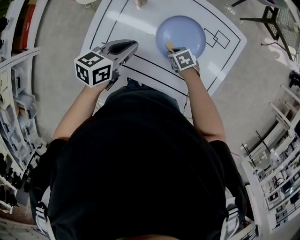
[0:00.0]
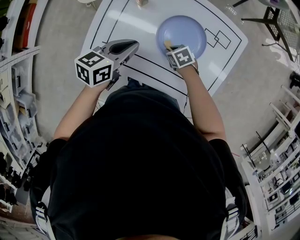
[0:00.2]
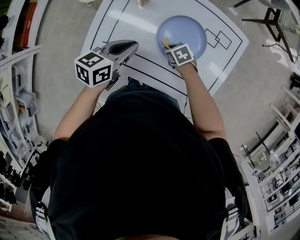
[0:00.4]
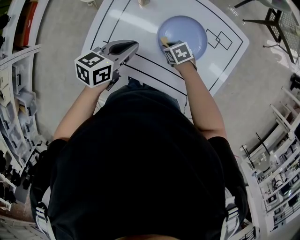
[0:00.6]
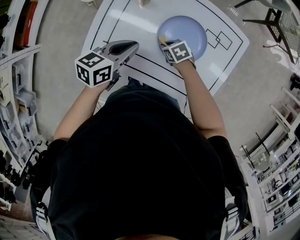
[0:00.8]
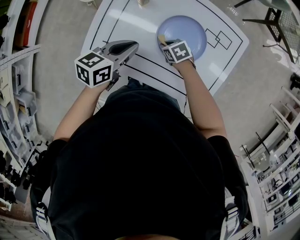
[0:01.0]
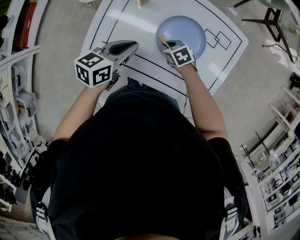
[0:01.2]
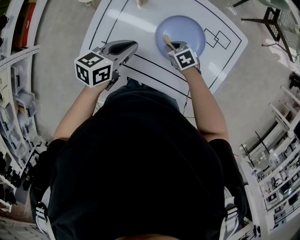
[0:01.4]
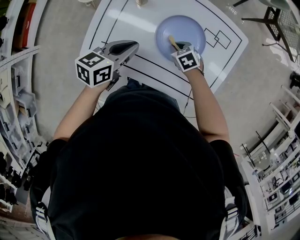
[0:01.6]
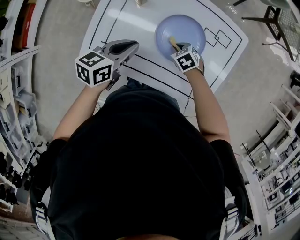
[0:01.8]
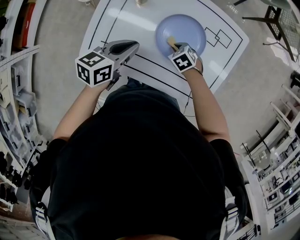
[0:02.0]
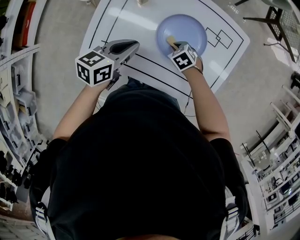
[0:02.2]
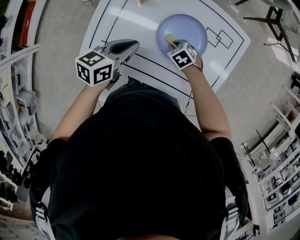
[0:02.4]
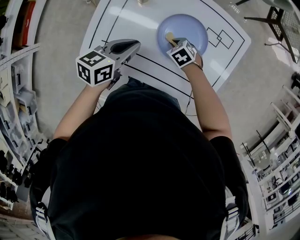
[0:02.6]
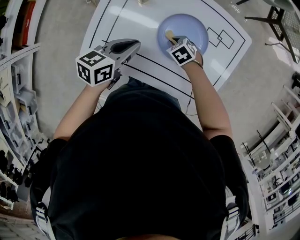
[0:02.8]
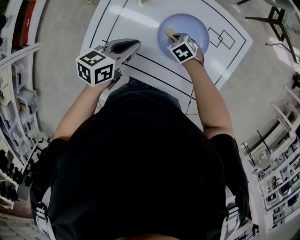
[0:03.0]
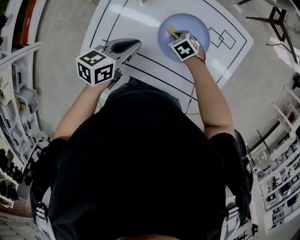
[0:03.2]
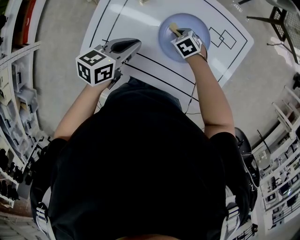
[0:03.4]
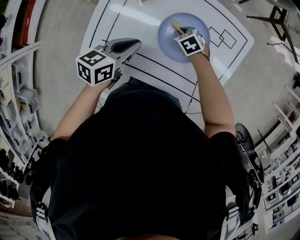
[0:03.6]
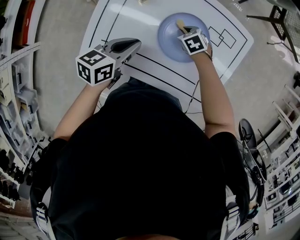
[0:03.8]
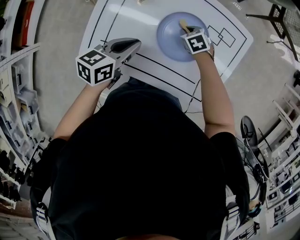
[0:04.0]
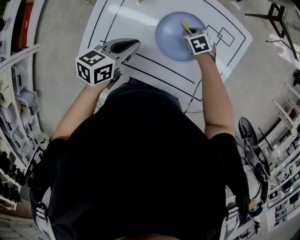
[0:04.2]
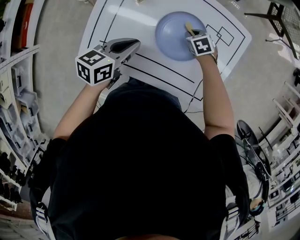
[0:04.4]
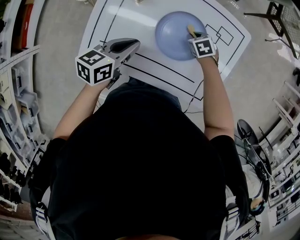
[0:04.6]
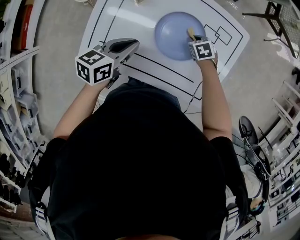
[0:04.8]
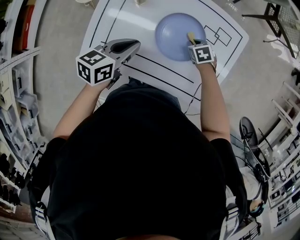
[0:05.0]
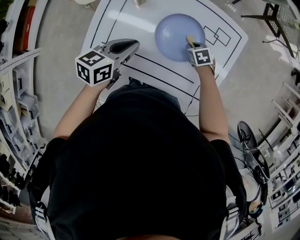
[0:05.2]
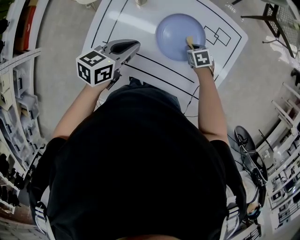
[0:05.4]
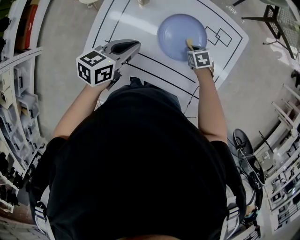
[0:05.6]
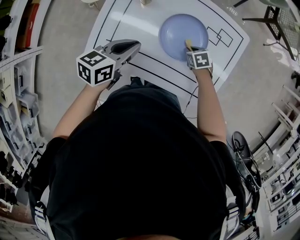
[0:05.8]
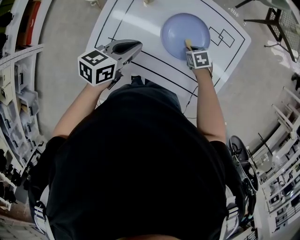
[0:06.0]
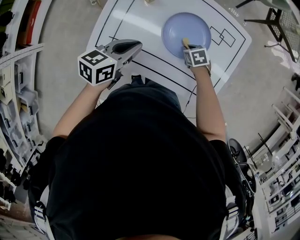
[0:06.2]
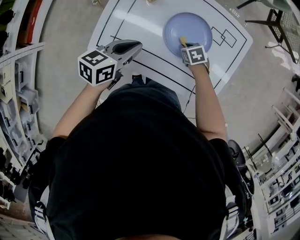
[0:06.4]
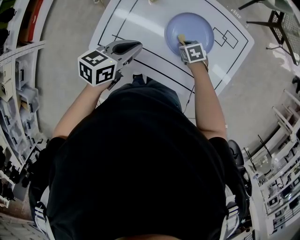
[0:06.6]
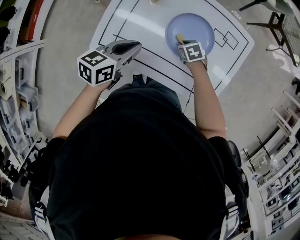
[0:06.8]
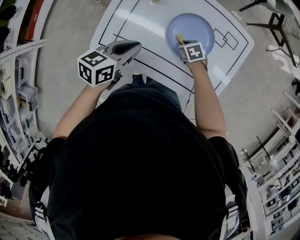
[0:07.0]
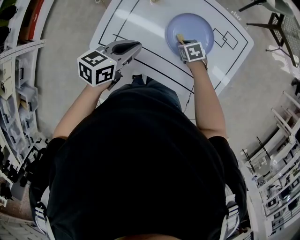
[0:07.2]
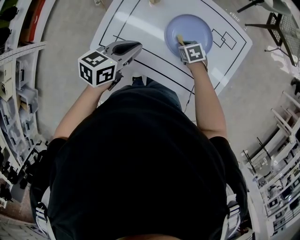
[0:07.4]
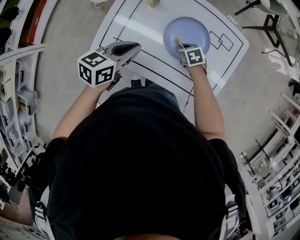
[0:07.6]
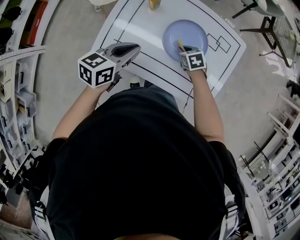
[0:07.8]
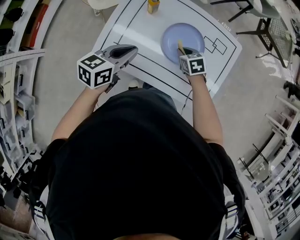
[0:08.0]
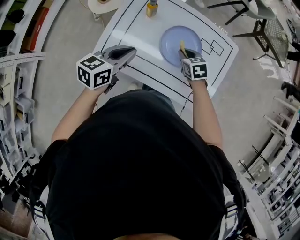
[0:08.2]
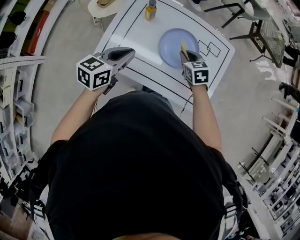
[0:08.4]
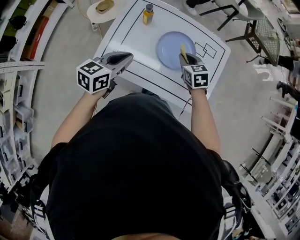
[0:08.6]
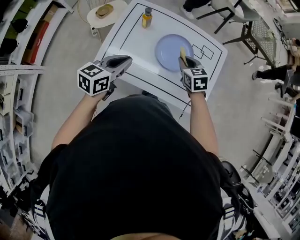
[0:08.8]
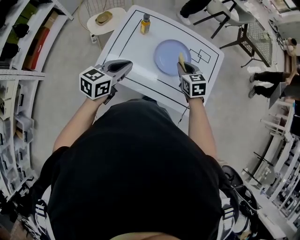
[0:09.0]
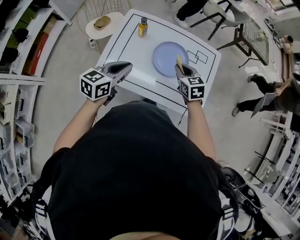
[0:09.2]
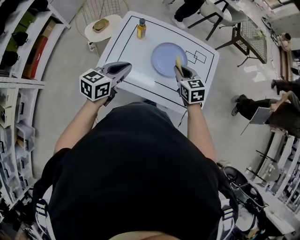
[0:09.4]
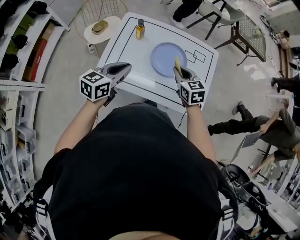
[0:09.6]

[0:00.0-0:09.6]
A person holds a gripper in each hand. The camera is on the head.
0:00.0 to 0:01.6: The grippers stay close to where they were, moving slightly.
0:01.6 to 0:03.2: There are only small adjustments of the grippers.
0:03.2 to 0:04.8: The right gripper moves about 10 cm.
0:04.8 to 0:06.4: The right gripper moves approximately 10 cm.
0:06.4 to 0:08.0: The right gripper shifts approximately 10 cm upward; the left gripper changes place by roughly 5 cm.
0:08.0 to 0:09.6: The left gripper travels upward by roughly 5 cm. Meanwhile the right gripper goes roughly 20 cm upward and backward, and rotates roughly 30 degrees.

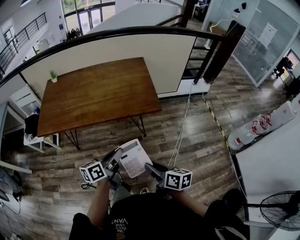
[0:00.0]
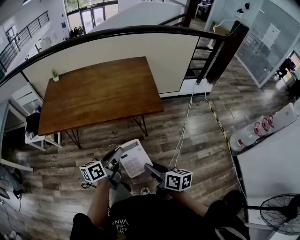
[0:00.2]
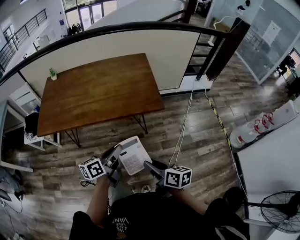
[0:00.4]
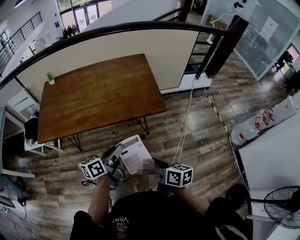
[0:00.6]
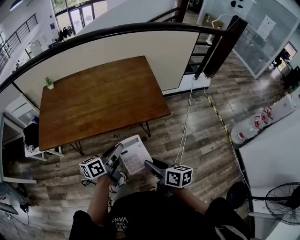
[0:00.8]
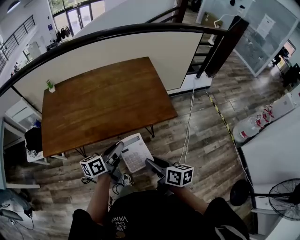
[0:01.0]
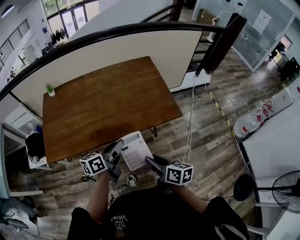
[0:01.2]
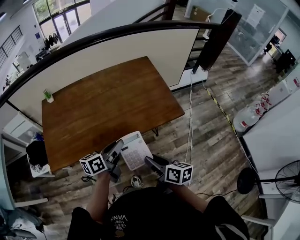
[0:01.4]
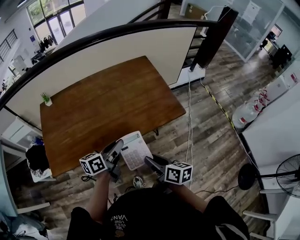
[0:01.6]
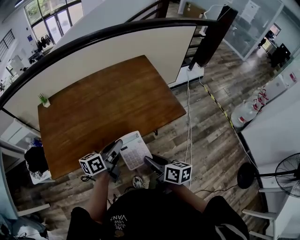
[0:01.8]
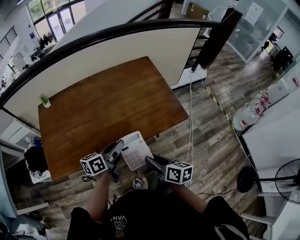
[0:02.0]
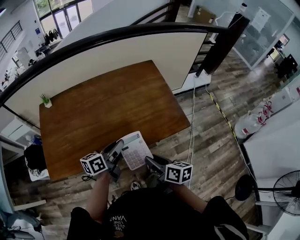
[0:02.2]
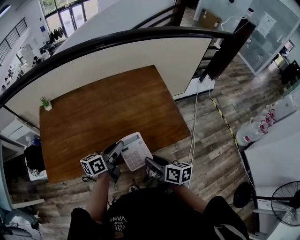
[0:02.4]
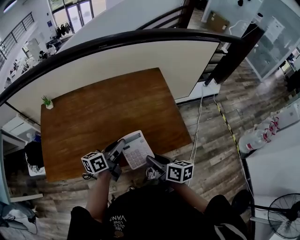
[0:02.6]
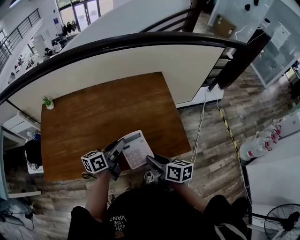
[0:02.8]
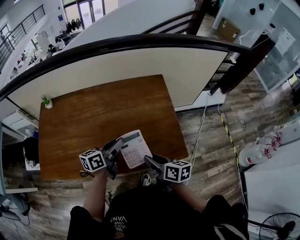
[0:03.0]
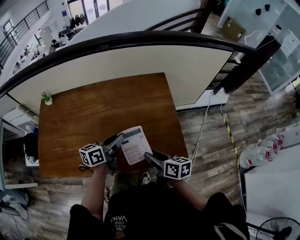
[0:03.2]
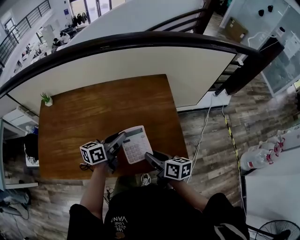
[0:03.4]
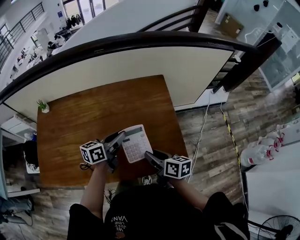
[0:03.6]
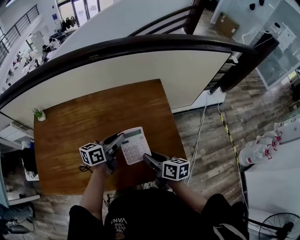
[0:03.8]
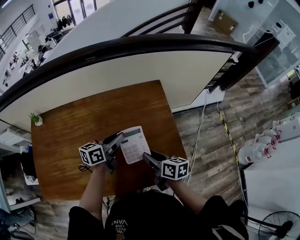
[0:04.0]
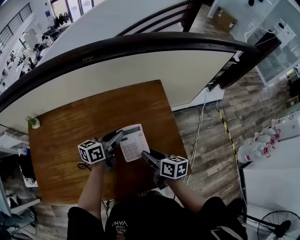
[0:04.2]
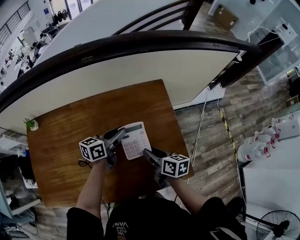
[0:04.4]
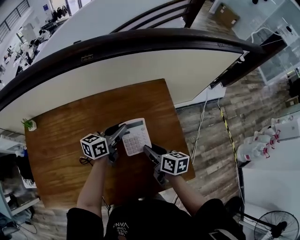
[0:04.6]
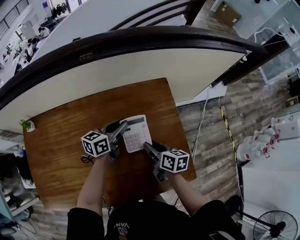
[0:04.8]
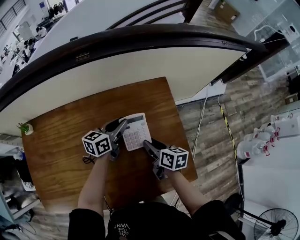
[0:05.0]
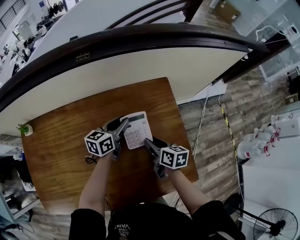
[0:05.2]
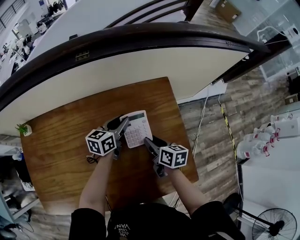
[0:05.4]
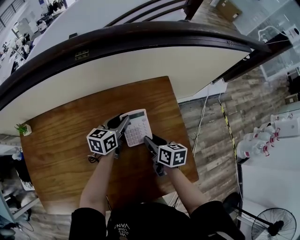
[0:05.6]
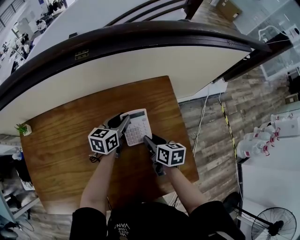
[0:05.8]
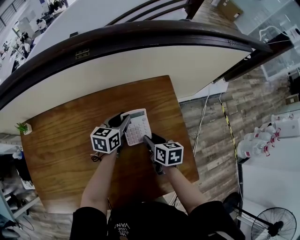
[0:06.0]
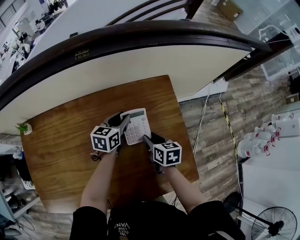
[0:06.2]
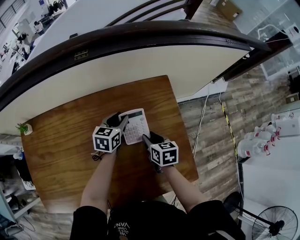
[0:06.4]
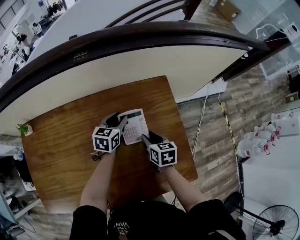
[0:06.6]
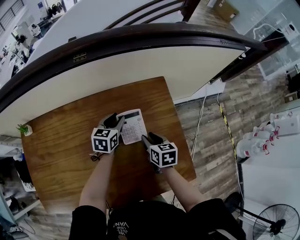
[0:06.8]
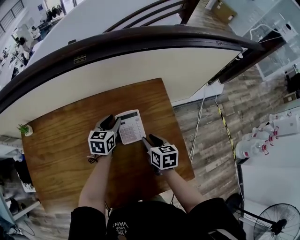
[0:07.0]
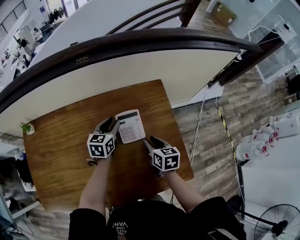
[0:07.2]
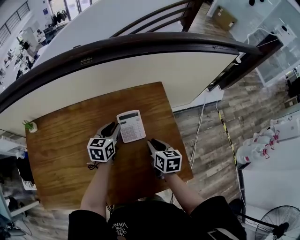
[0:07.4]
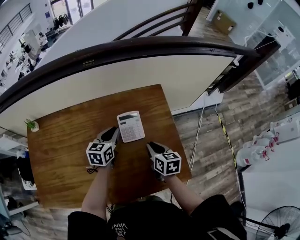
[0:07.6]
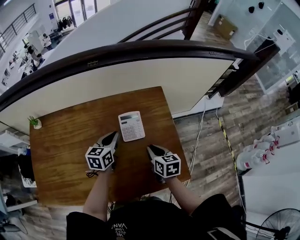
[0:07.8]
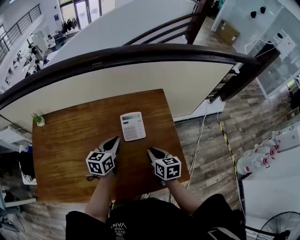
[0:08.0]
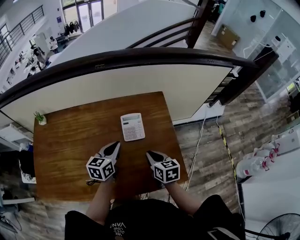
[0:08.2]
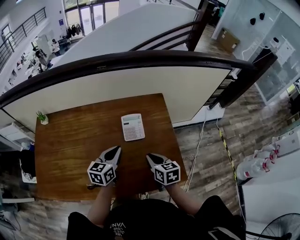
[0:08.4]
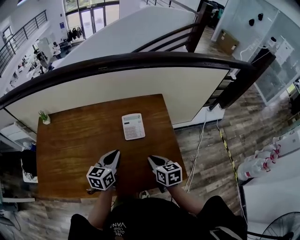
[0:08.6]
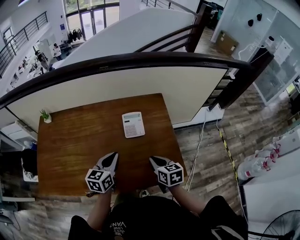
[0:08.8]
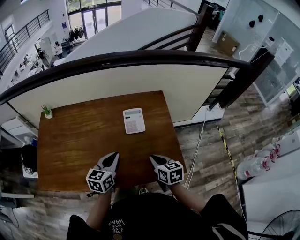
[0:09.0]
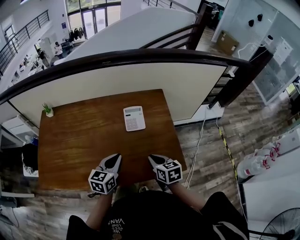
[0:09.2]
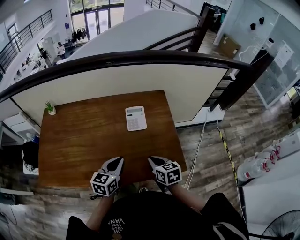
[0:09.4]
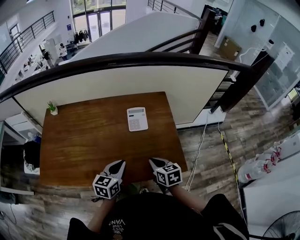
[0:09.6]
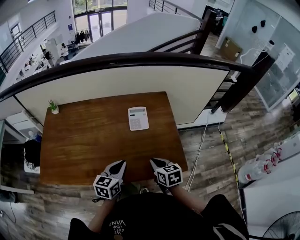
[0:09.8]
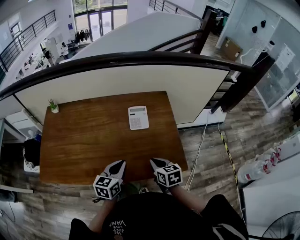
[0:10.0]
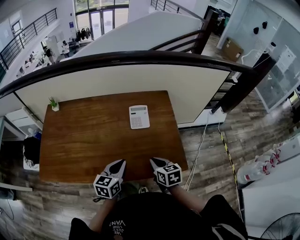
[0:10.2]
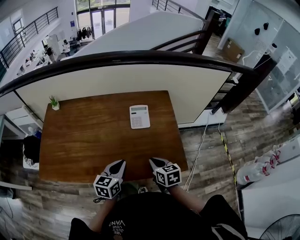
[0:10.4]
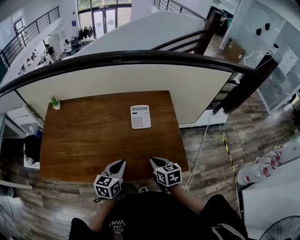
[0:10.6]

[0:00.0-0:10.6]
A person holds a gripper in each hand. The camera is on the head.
0:00.0 to 0:01.6: The right gripper goes roughly 25 cm to the left and forward. The left gripper is displaced forward and to the left by some 25 cm.
0:01.6 to 0:03.0: The grippers both shift forward by about 20 cm.
0:03.0 to 0:04.6: The two grippers go about 20 cm forward.
0:04.6 to 0:06.0: The right gripper heads forward, covering approximately 5 cm. The left gripper is displaced forward and downward by about 10 cm.
0:06.0 to 0:07.6: The right gripper heads backward and upward, covering about 10 cm. The left gripper goes approximately 10 cm backward.
0:07.6 to 0:09.0: The left gripper goes about 20 cm backward. Meanwhile the right gripper shifts about 15 cm backward.
0:09.0 to 0:10.6: The left gripper moves backward, some 5 cm.

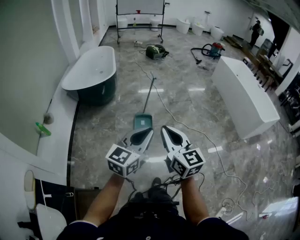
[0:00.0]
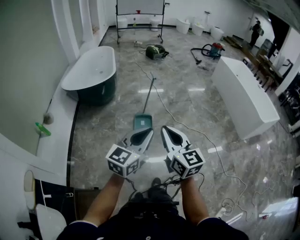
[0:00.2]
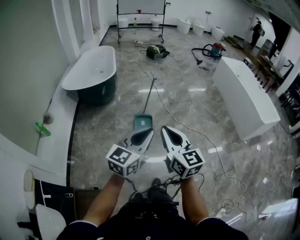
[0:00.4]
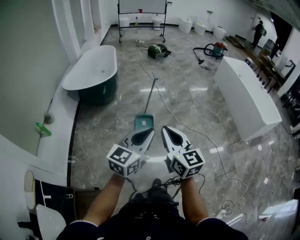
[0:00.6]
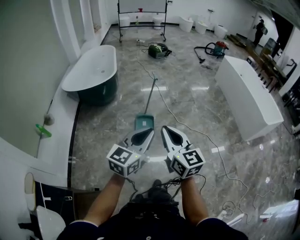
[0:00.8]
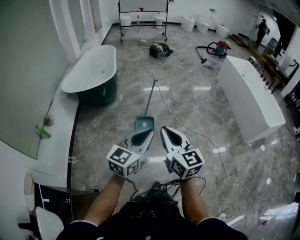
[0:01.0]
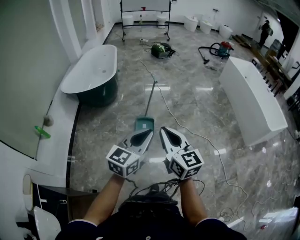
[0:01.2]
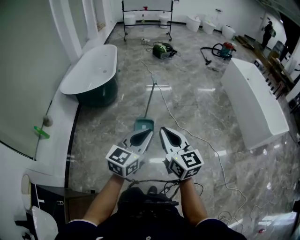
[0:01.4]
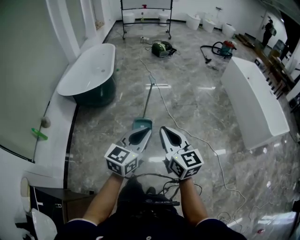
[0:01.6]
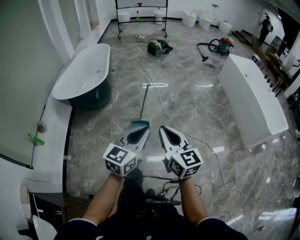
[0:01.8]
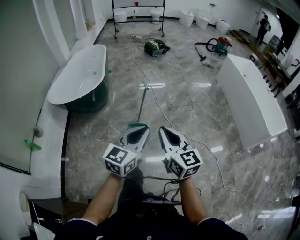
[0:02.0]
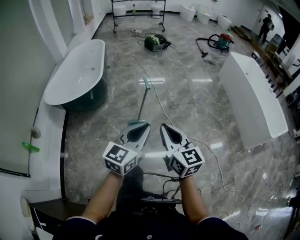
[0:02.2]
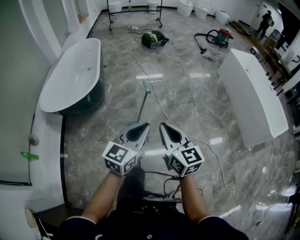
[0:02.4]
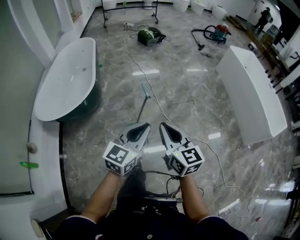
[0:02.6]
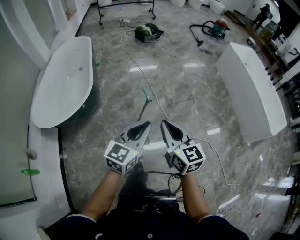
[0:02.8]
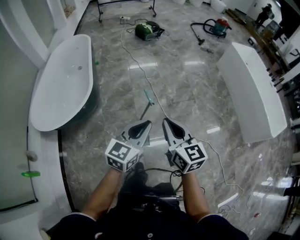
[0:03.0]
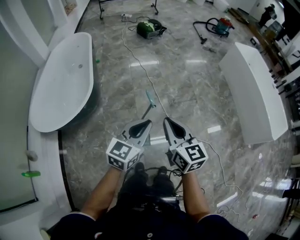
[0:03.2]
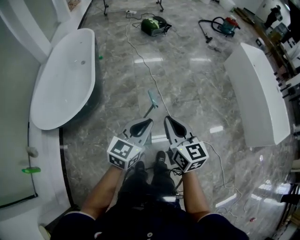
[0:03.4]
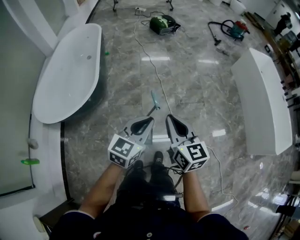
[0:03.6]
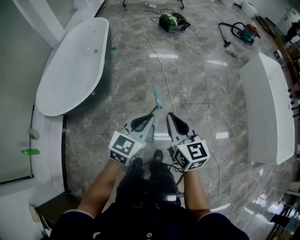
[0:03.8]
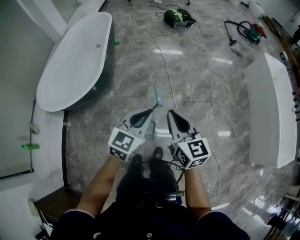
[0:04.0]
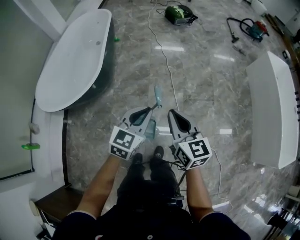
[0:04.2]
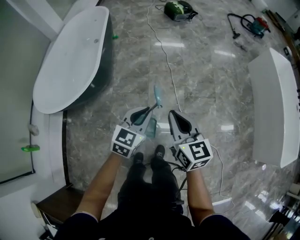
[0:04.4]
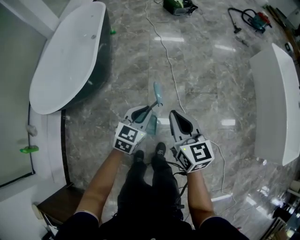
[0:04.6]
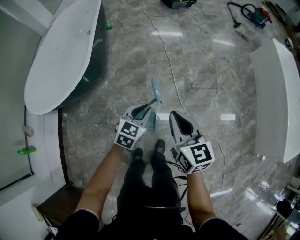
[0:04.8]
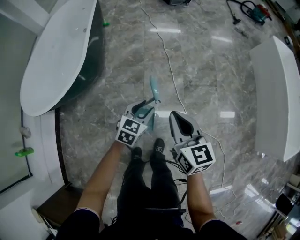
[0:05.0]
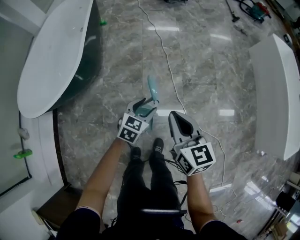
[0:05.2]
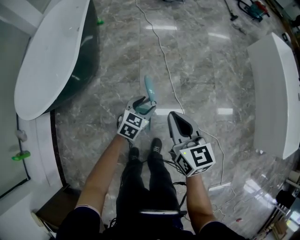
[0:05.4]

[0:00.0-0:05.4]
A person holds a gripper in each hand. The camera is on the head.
0:00.0 to 0:01.4: The right gripper goes roughly 15 cm forward. The left gripper heads forward and to the right, covering roughly 15 cm.
0:01.4 to 0:02.8: The two grippers travel together, forward, approximately 40 cm.
0:02.8 to 0:04.0: Both grippers move forward, some 15 cm.
0:04.0 to 0:05.4: The right gripper travels downward by some 15 cm. Meanwhile the left gripper goes roughly 30 cm downward, changes its angle by approximately 20 degrees, and opens.
